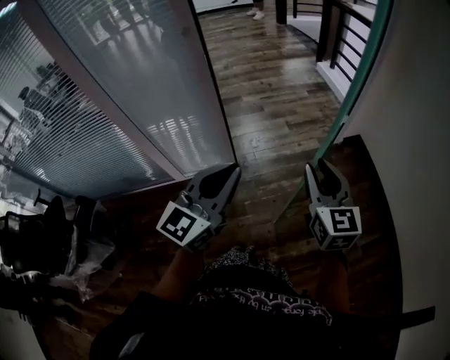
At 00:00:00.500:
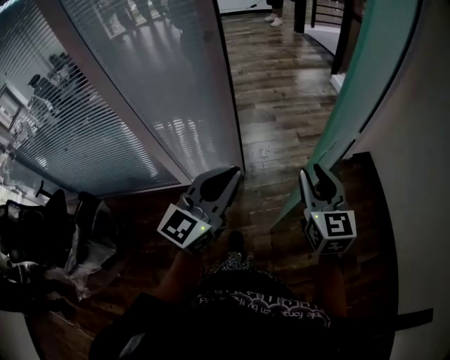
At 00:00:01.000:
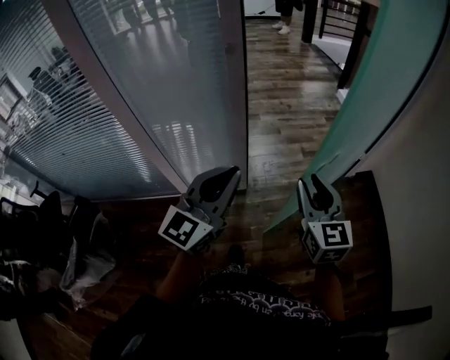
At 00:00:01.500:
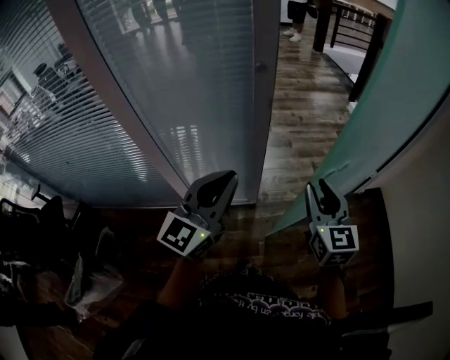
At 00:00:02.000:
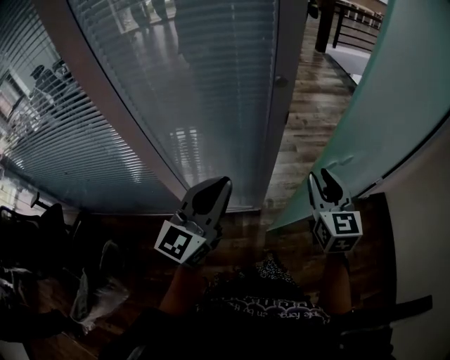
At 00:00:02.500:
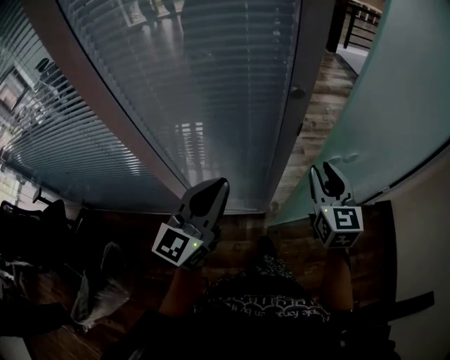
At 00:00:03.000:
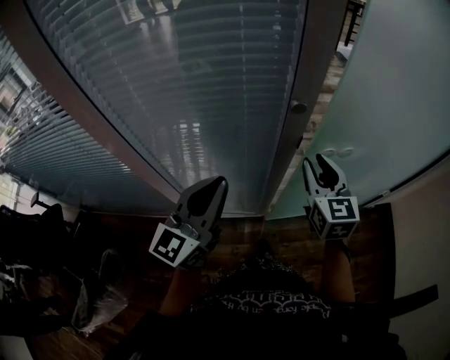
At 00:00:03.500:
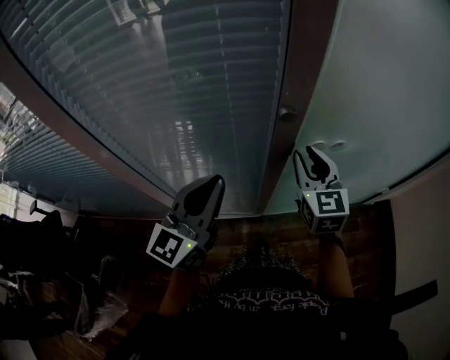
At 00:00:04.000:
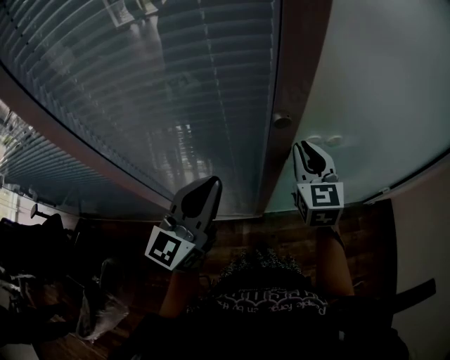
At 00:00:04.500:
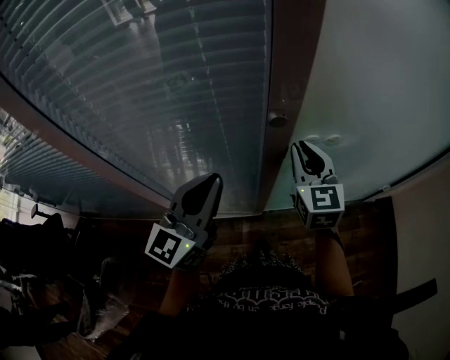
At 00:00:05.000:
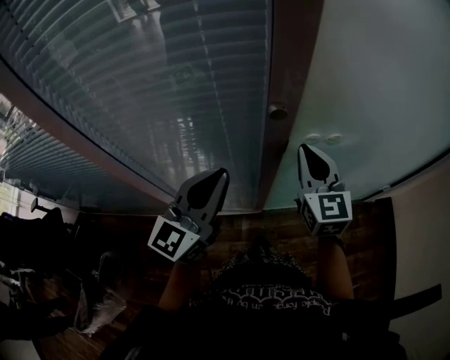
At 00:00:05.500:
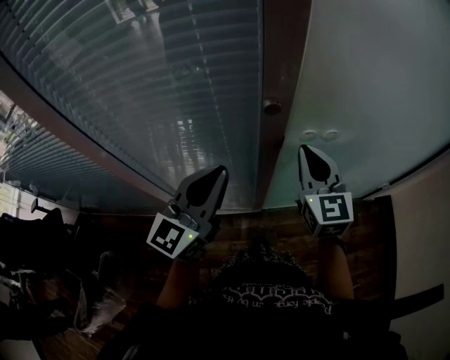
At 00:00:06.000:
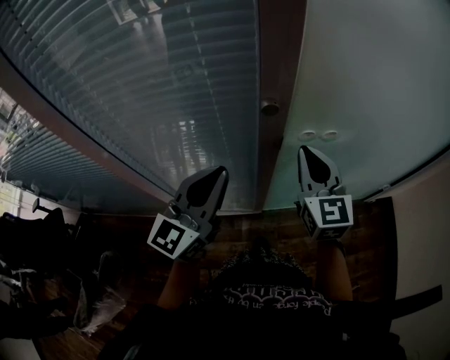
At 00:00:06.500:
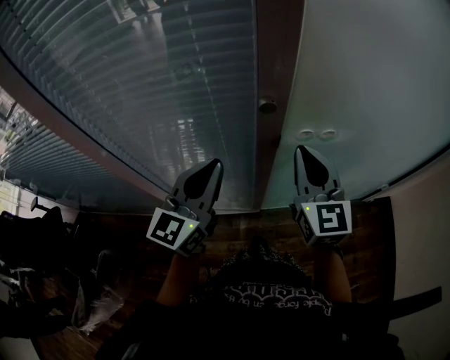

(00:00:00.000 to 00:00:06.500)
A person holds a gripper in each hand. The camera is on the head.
00:00:00.000 - 00:00:02.000: The right gripper shifts some 35 cm forward and to the left. Meanwhile the left gripper moves to the left and forward, roughly 35 cm.
00:00:02.000 - 00:00:04.500: The two grippers go roughly 15 cm forward.
00:00:04.500 - 00:00:06.500: The right gripper travels backward by some 5 cm.

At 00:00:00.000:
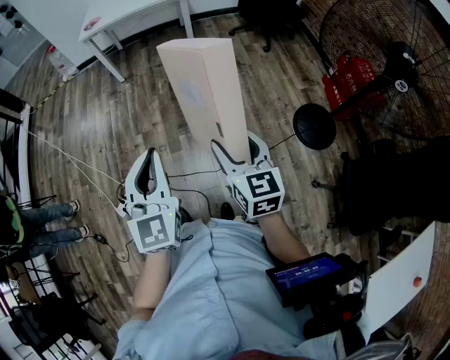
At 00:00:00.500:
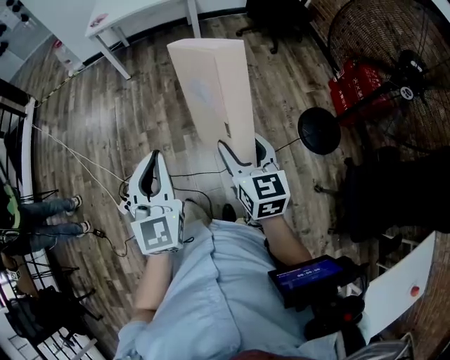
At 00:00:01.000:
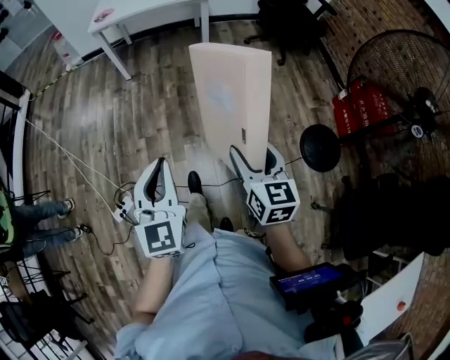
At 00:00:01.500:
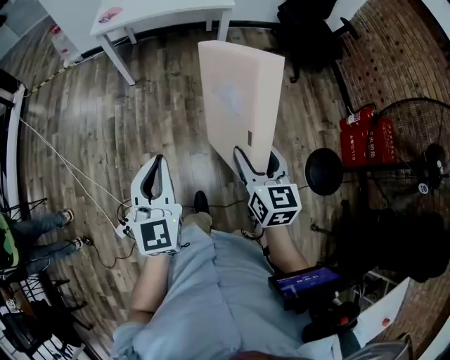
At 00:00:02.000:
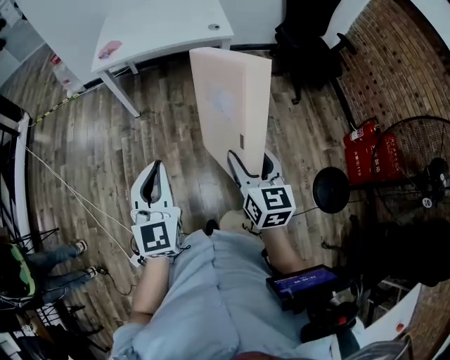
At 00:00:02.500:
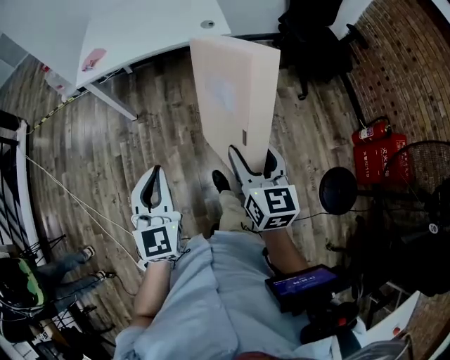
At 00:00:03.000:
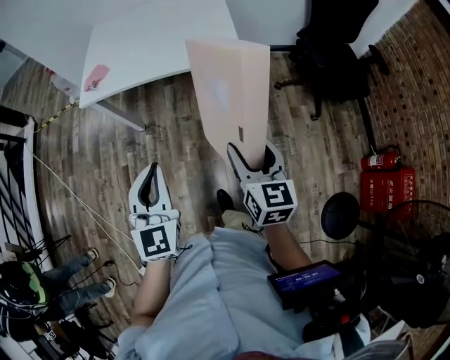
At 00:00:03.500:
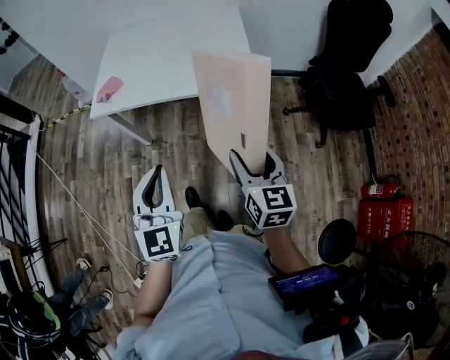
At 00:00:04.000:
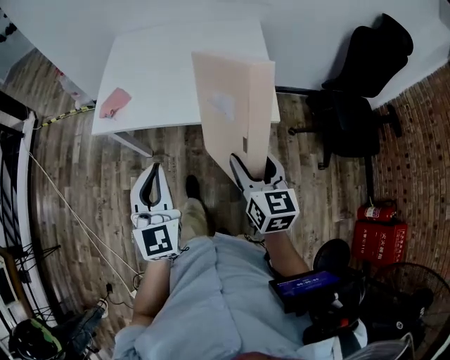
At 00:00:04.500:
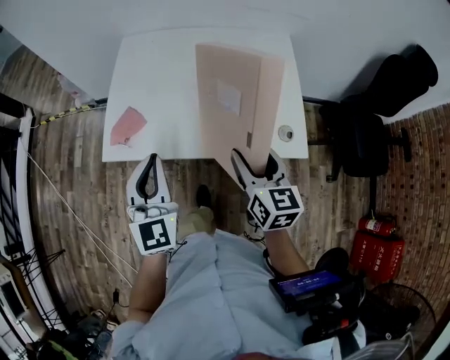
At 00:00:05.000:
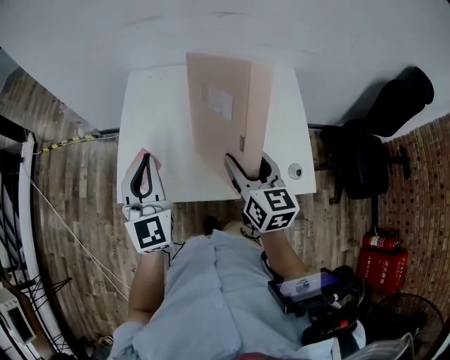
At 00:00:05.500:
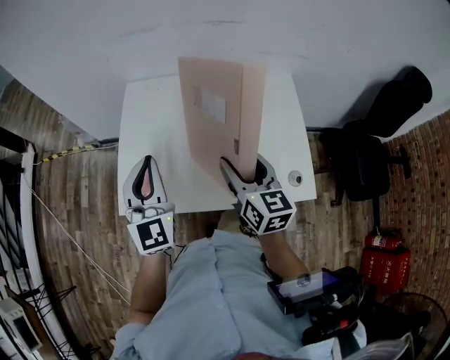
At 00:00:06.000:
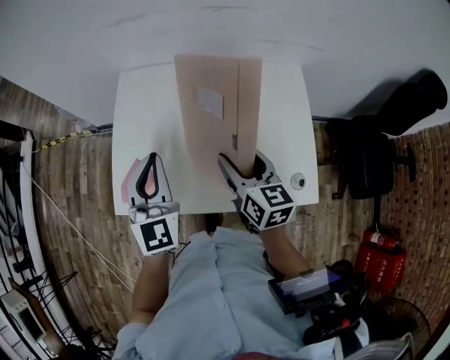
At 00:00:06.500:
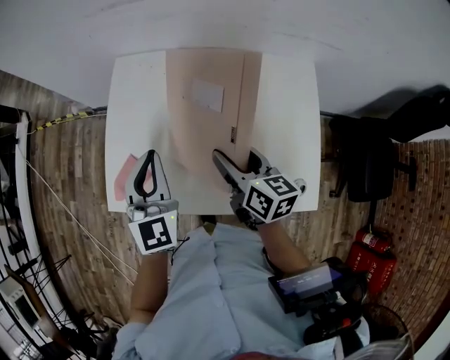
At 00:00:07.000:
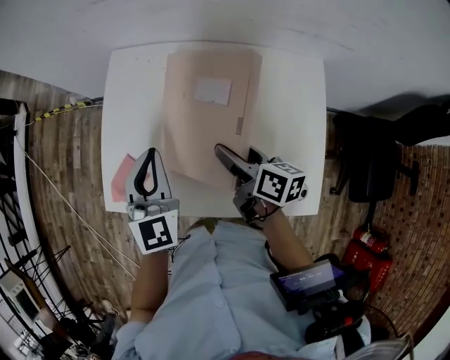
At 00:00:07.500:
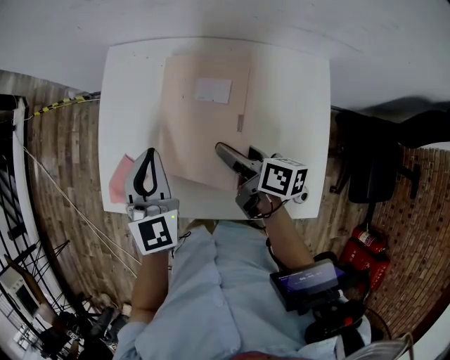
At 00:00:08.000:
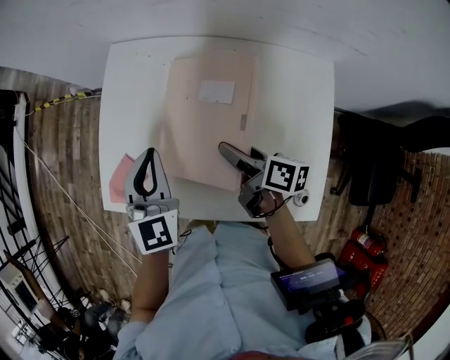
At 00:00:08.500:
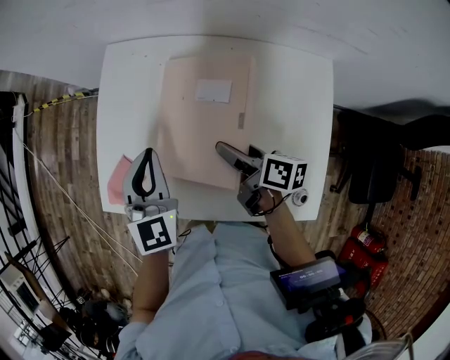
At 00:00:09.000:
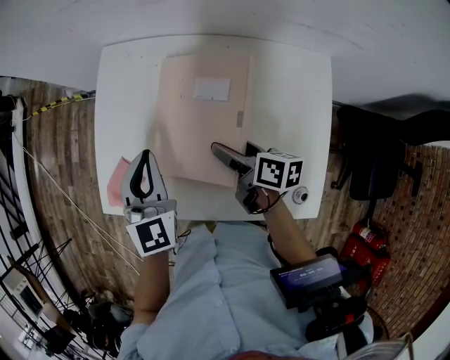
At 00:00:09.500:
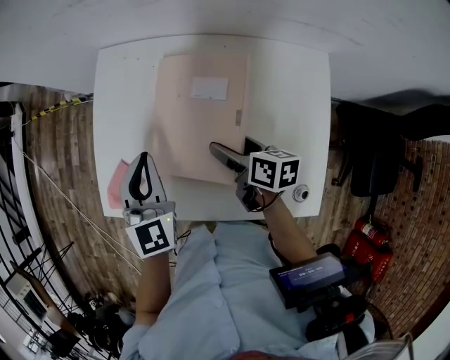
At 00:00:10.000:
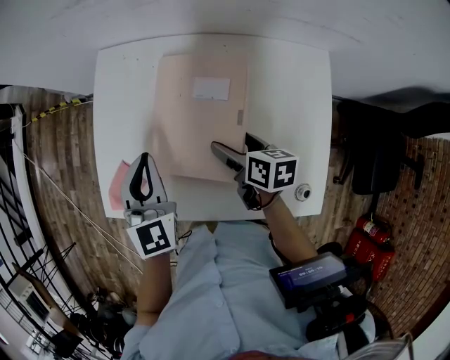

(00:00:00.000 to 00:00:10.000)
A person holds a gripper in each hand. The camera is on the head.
00:00:00.000 - 00:00:02.000: The two grippers travel together, forward, about 40 cm.
00:00:02.000 - 00:00:04.000: The pair of grippers is taken forward, some 50 cm.
00:00:04.000 - 00:00:06.000: The grippers both shift forward by some 40 cm.
00:00:06.000 - 00:00:08.000: Both grippers move downward and forward, some 15 cm. The right gripper swivels about 50 degrees.
00:00:08.000 - 00:00:10.000: The right gripper rotates about 20 degrees.

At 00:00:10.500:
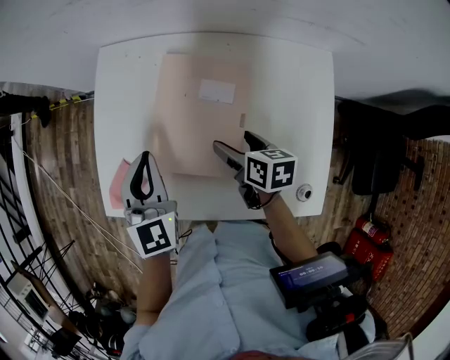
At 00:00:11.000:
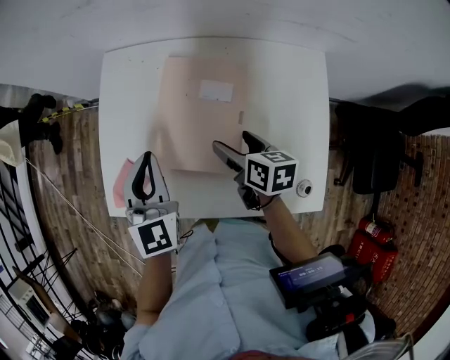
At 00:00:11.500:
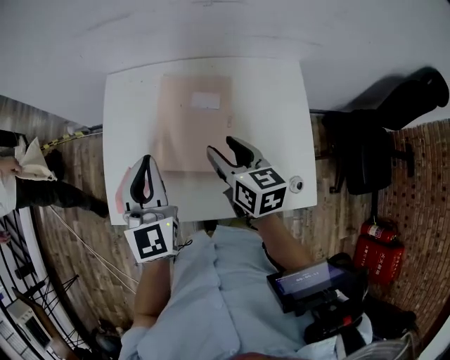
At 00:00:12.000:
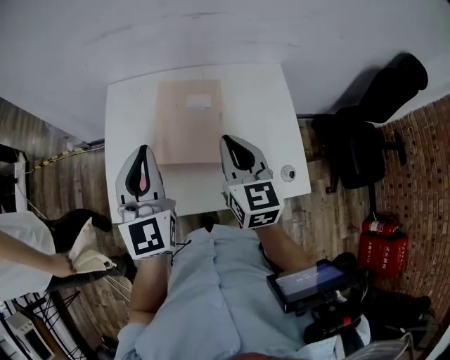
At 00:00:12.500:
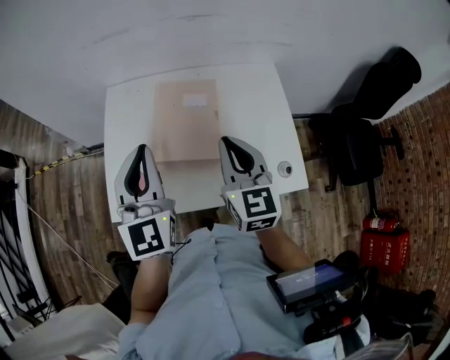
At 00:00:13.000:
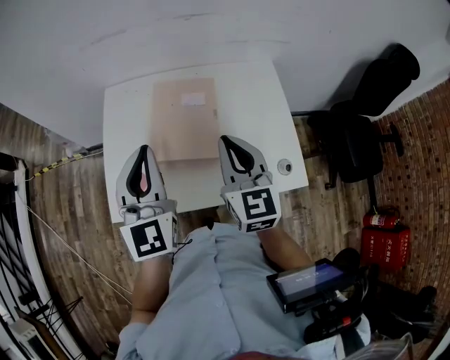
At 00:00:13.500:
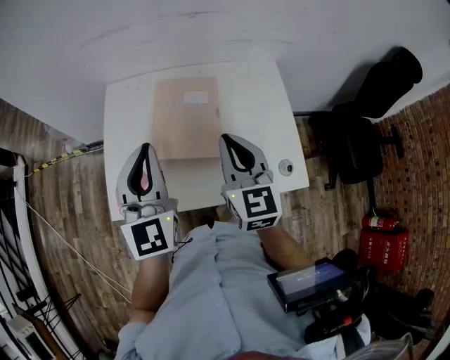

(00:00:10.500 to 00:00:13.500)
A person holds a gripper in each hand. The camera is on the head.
00:00:10.500 - 00:00:12.000: Both grippers move upward and backward, roughly 20 cm. The left gripper rotates approximately 20 degrees, while the right gripper swivels about 50 degrees, and closes.
00:00:12.000 - 00:00:13.500: The grippers stay close to where they were, moving slightly.

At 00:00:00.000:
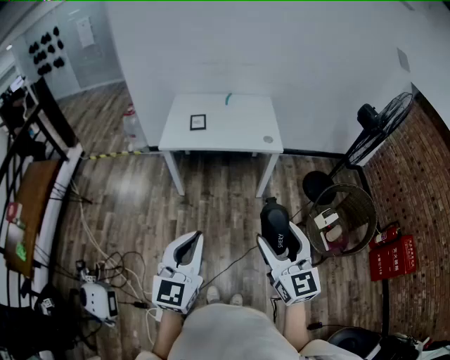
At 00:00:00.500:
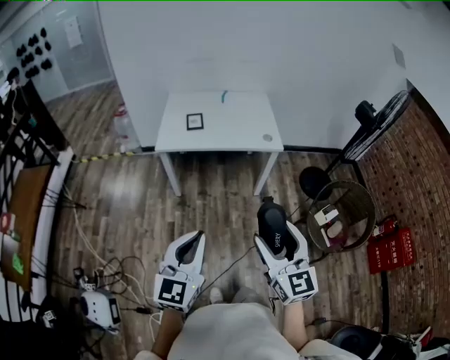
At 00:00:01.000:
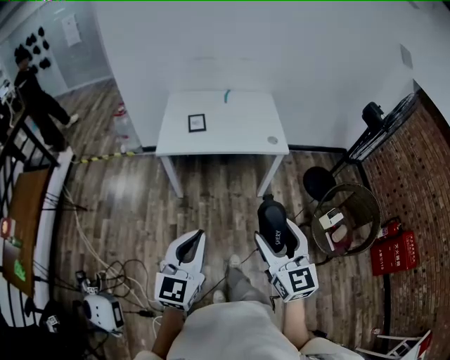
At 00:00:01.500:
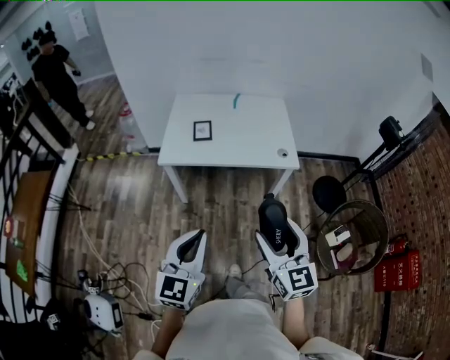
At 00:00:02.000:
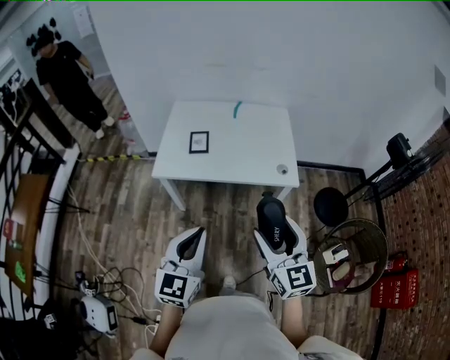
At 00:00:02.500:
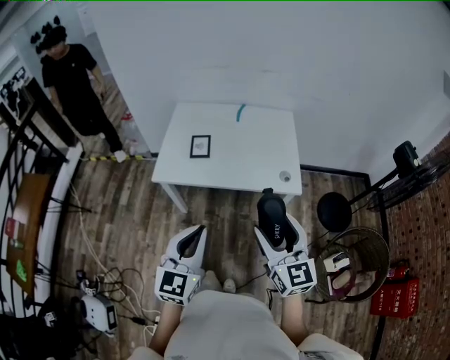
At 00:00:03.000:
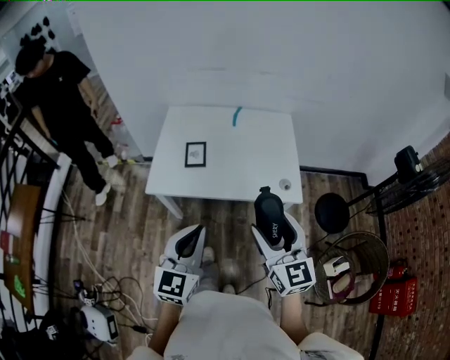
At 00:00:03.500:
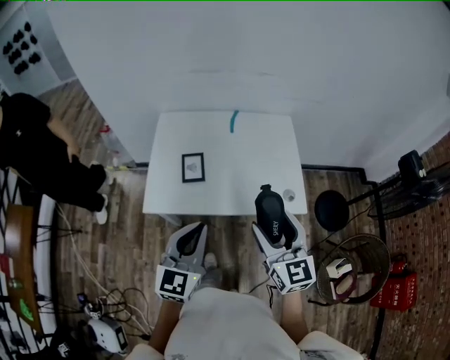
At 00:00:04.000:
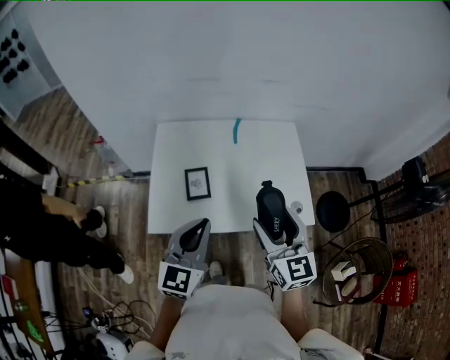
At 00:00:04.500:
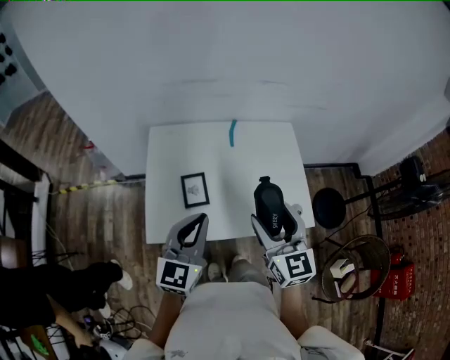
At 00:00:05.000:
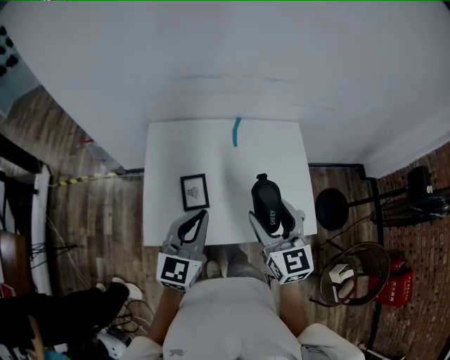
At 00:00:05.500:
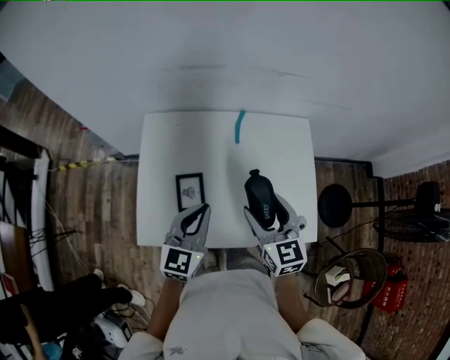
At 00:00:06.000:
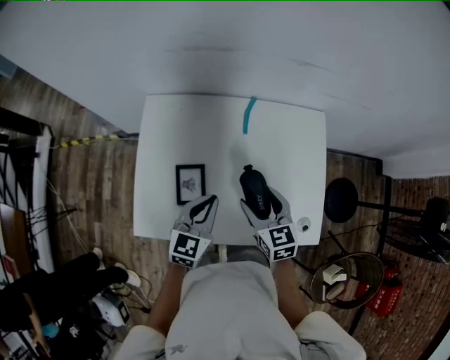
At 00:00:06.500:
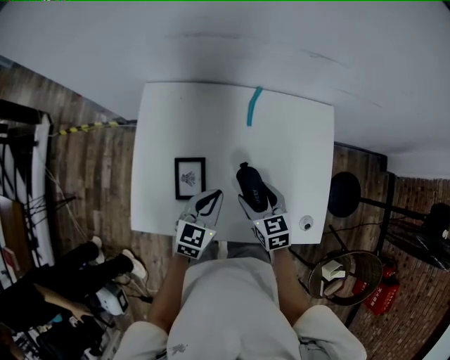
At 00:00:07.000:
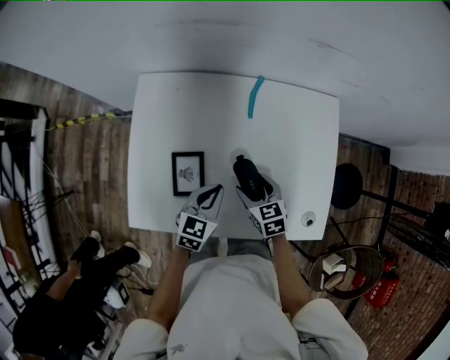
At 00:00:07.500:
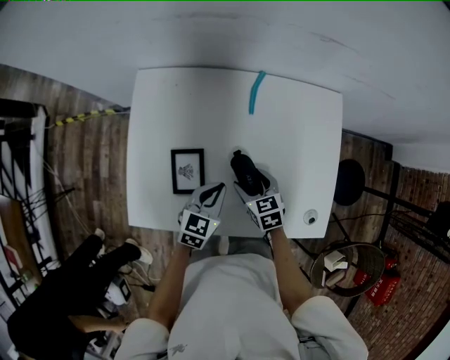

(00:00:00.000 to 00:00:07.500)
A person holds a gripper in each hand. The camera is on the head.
00:00:00.000 - 00:00:02.000: Both grippers move forward, approximately 30 cm.
00:00:02.000 - 00:00:04.000: The grippers both shift forward by roughly 30 cm.
00:00:04.000 - 00:00:05.500: The grippers both shift forward and downward by roughly 20 cm.
00:00:05.500 - 00:00:07.500: The grippers both shift downward by roughly 20 cm. The right gripper swivels approximately 30 degrees, while the left gripper changes its angle by approximately 20 degrees.
